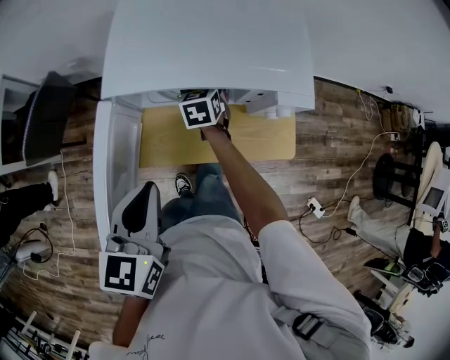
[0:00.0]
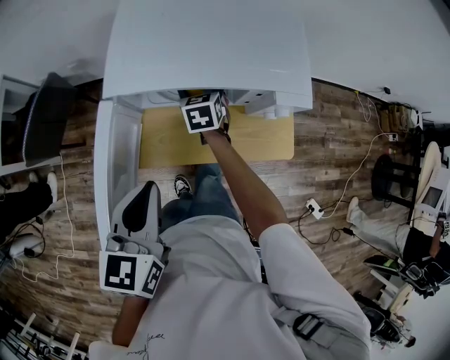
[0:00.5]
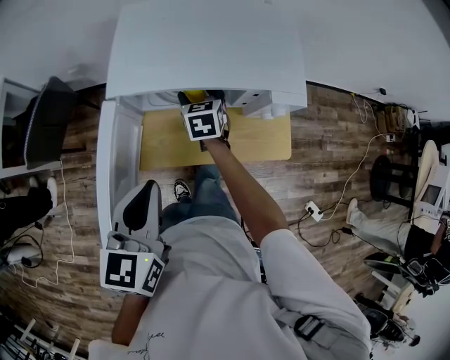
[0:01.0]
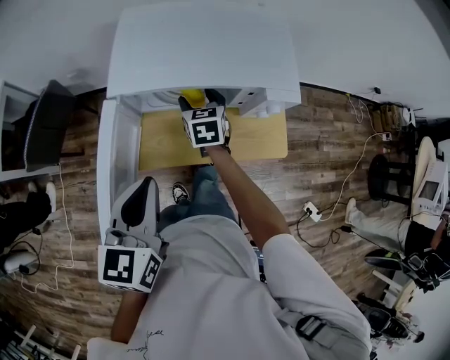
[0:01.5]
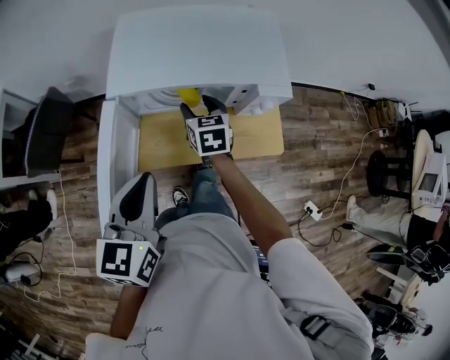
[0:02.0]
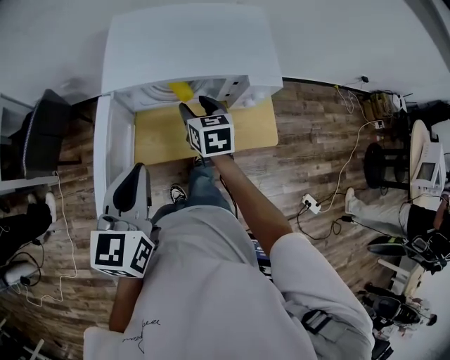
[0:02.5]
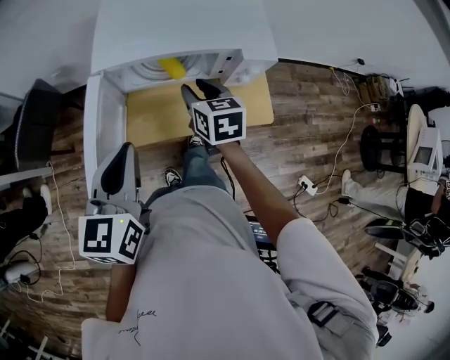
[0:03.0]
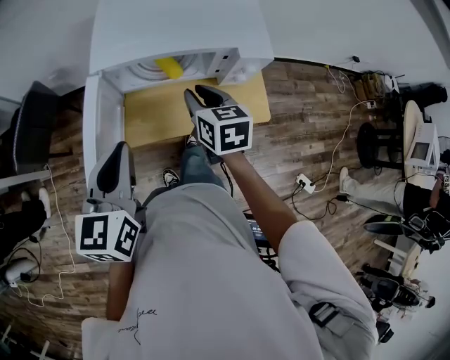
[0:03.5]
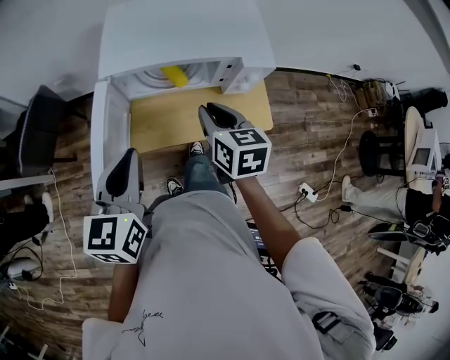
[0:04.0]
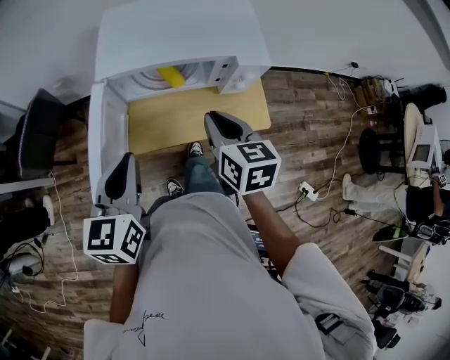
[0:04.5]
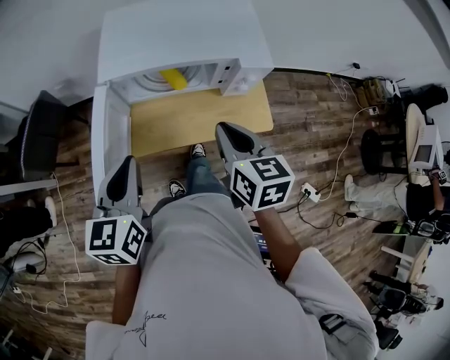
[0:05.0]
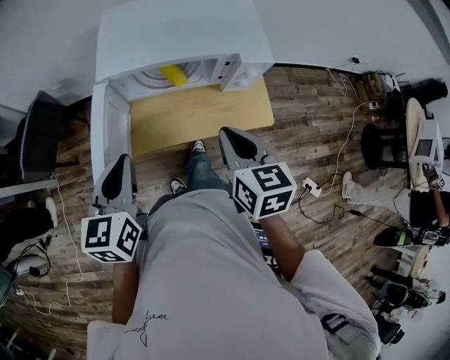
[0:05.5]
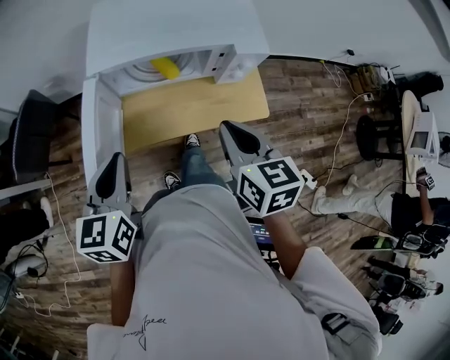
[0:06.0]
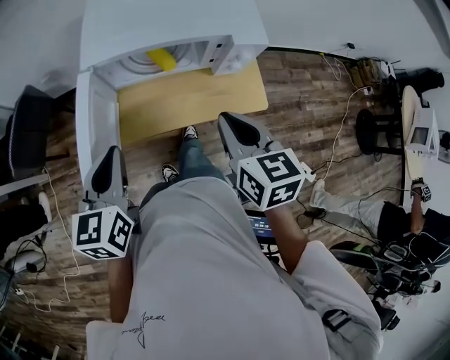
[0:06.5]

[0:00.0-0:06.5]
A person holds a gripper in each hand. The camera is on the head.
0:00.0 to 0:02.0: The right gripper goes roughly 10 cm backward and upward.
0:02.0 to 0:04.5: The right gripper travels backward and upward by some 20 cm, and closes its fingers.
0:04.5 to 0:06.5: The right gripper moves some 5 cm.

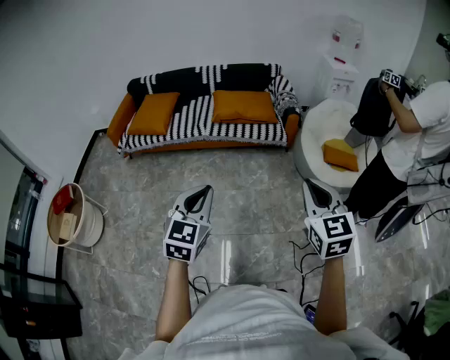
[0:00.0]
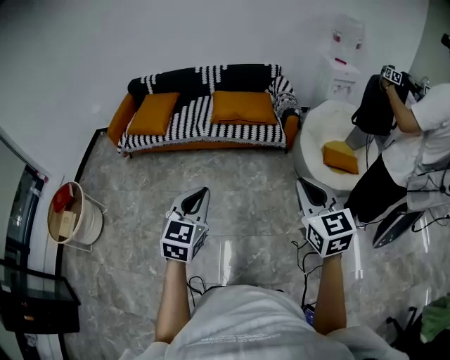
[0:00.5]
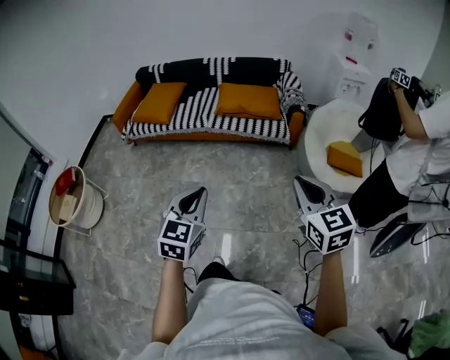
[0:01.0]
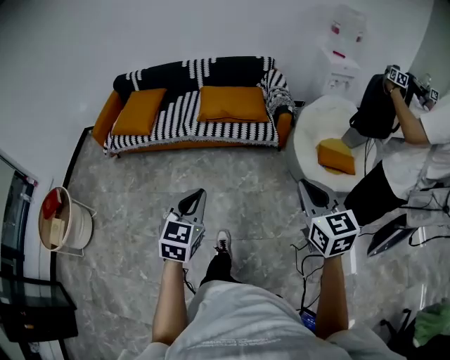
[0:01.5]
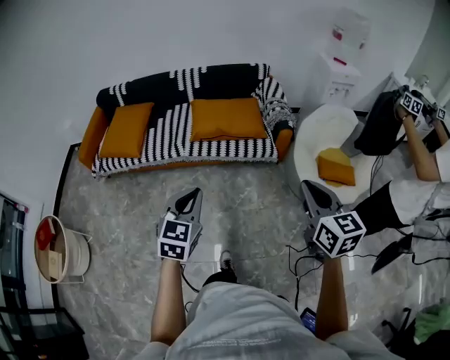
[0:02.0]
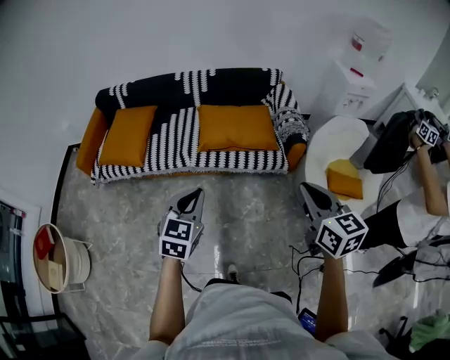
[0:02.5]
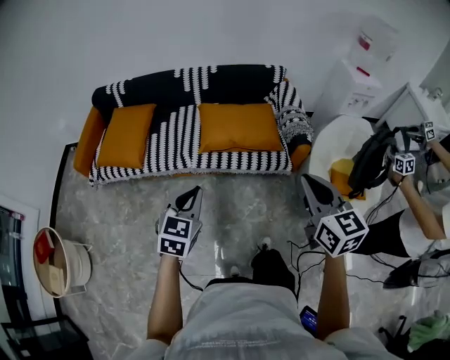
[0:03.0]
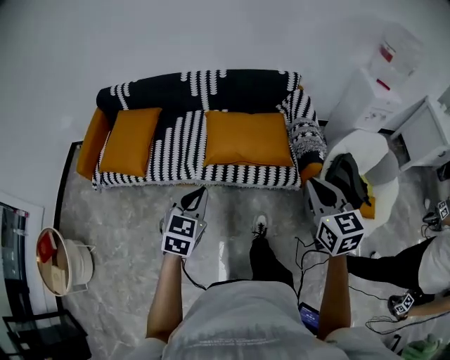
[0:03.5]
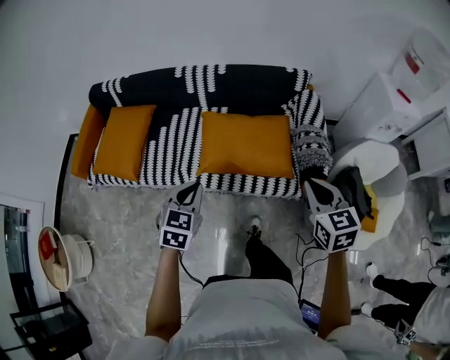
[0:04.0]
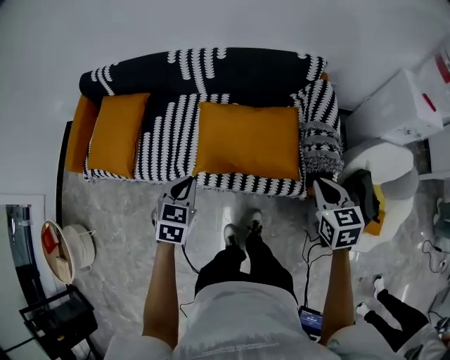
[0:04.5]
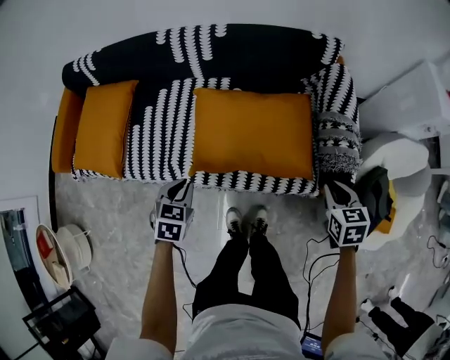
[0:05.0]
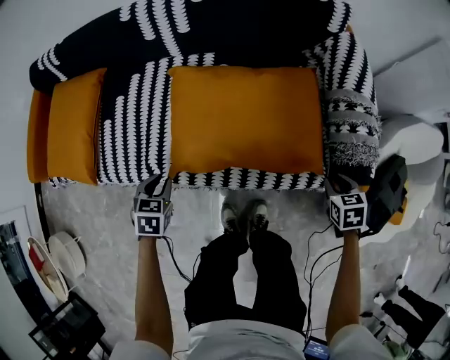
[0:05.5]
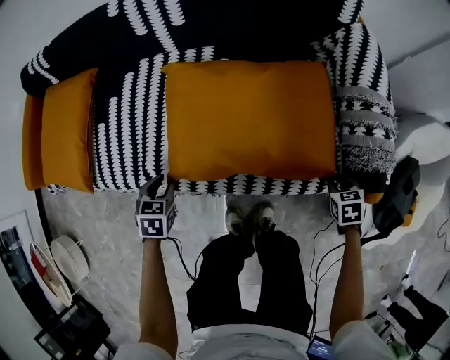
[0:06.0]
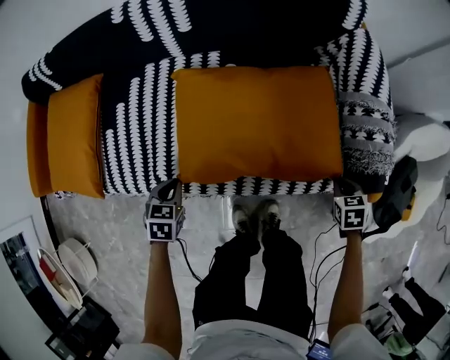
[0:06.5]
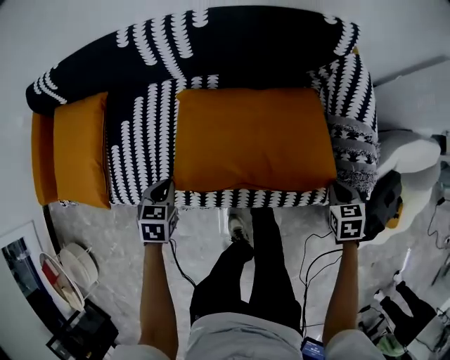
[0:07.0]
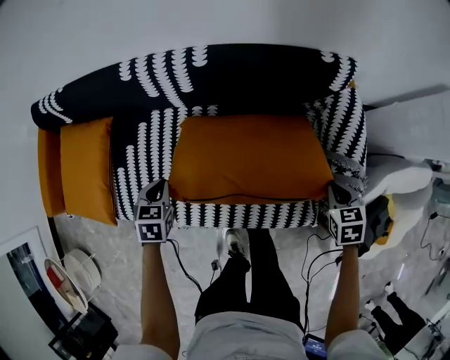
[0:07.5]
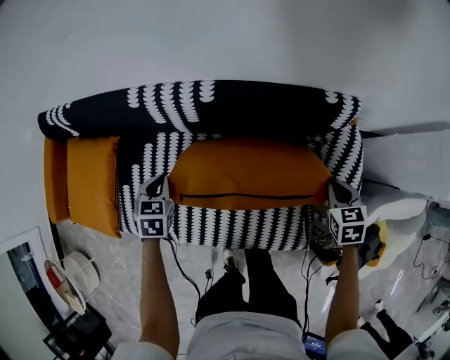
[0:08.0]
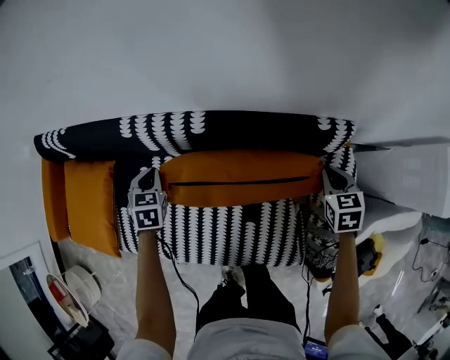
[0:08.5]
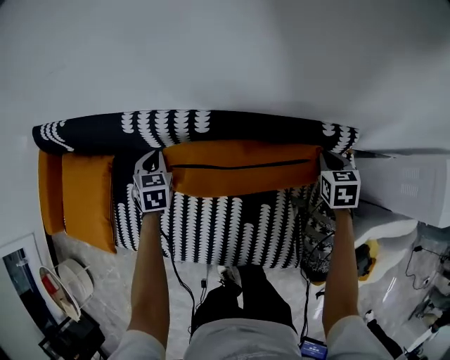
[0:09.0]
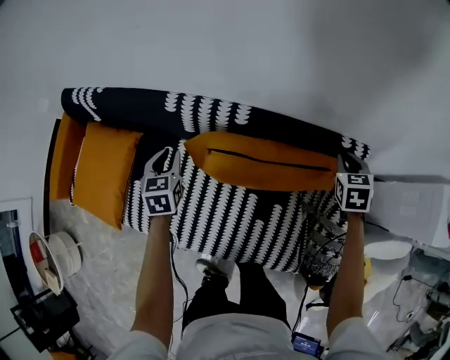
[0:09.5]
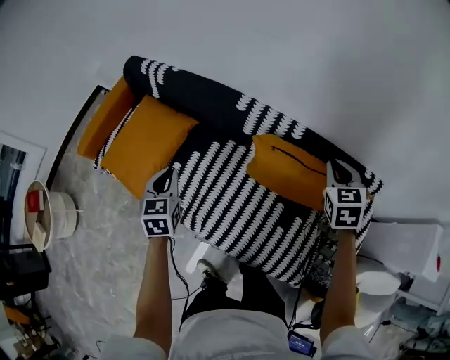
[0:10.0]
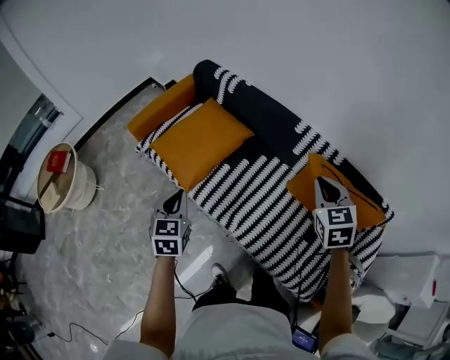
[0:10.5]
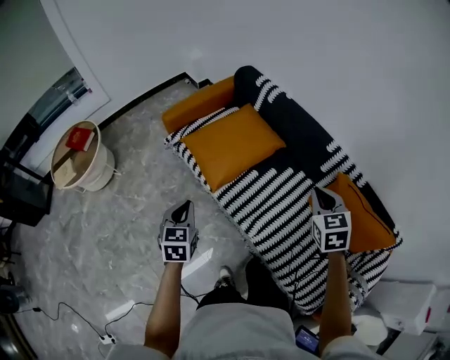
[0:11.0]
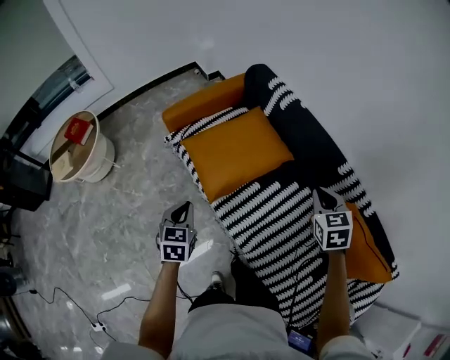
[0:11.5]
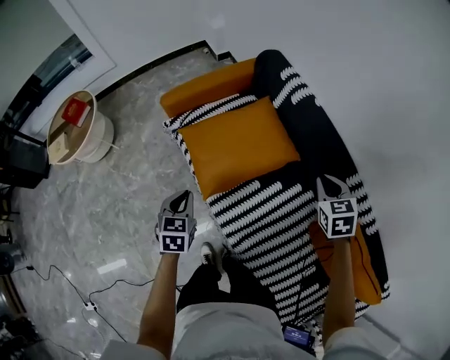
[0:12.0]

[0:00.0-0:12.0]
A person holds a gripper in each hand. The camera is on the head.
0:00.0 to 0:02.0: Both grippers travel together forward, approximately 30 cm.
0:02.0 to 0:04.0: Both grippers are carried forward, approximately 50 cm.
0:04.0 to 0:06.0: The grippers both shift downward by approximately 50 cm. The left gripper rotates roughly 30 degrees, and opens. The right gripper points its fingers about 40 degrees further downward, and opens its fingers.
0:06.0 to 0:08.0: The grippers both shift forward and upward by about 35 cm. The left gripper closes up.
0:08.0 to 0:10.0: The left gripper heads to the left, upward and backward, covering some 30 cm, and rotates approximately 40 degrees; the right gripper shifts approximately 40 cm to the left, upward and forward, and rotates approximately 30 degrees.
0:10.0 to 0:12.0: The left gripper shifts by roughly 35 cm, and changes its angle by approximately 30 degrees; the right gripper moves about 50 cm, and changes its angle by roughly 40 degrees.

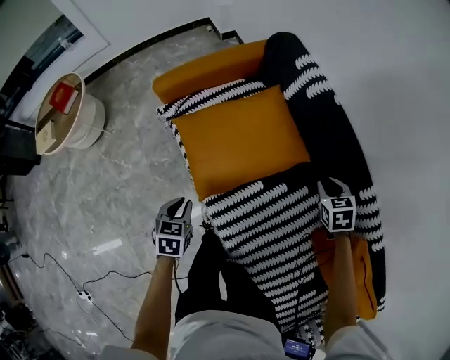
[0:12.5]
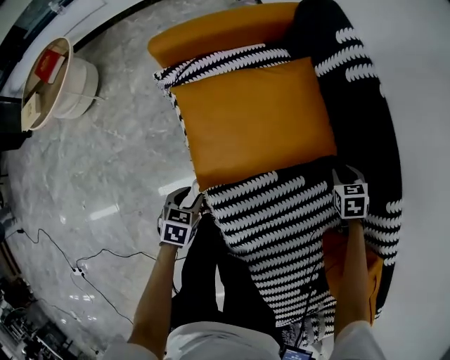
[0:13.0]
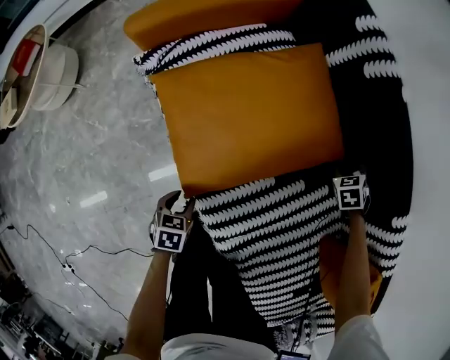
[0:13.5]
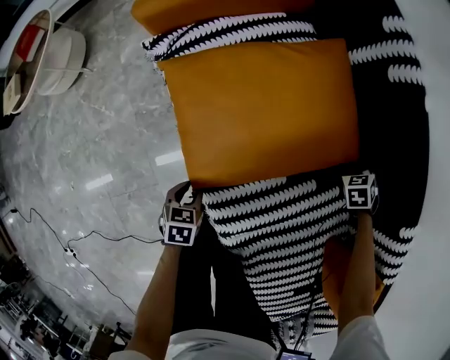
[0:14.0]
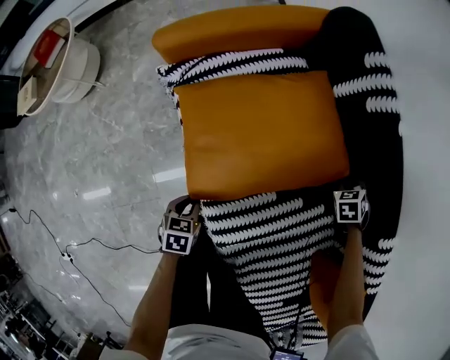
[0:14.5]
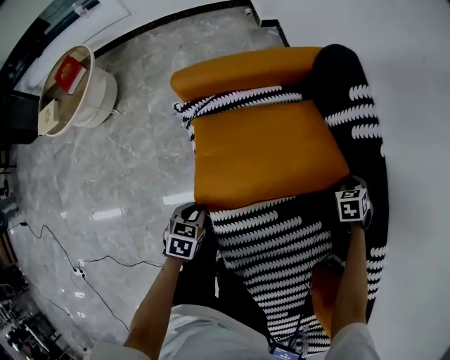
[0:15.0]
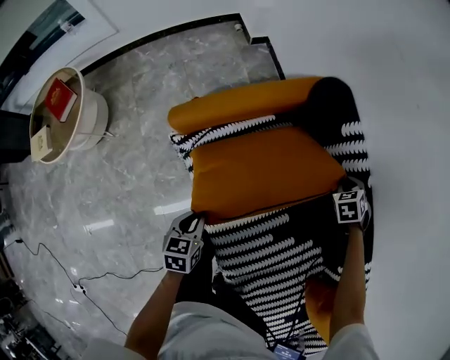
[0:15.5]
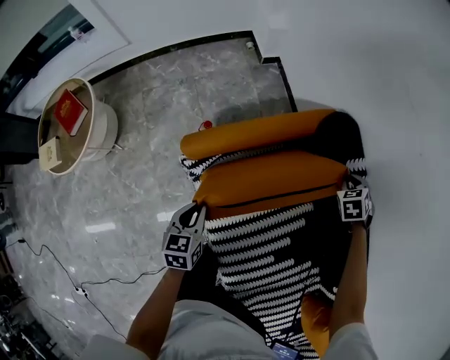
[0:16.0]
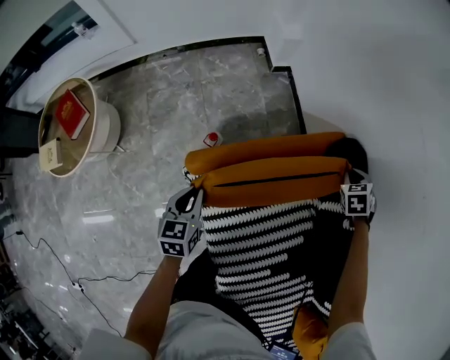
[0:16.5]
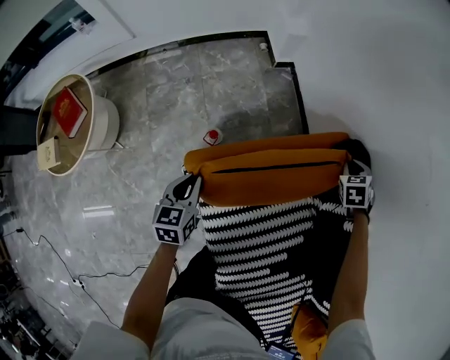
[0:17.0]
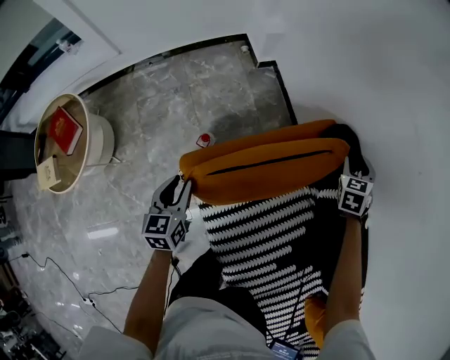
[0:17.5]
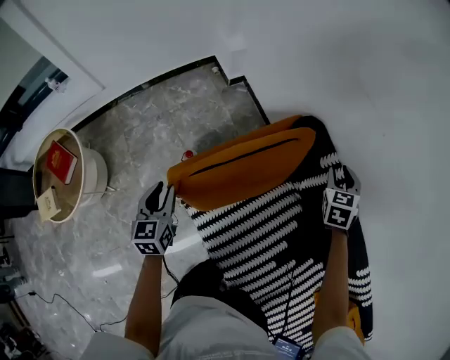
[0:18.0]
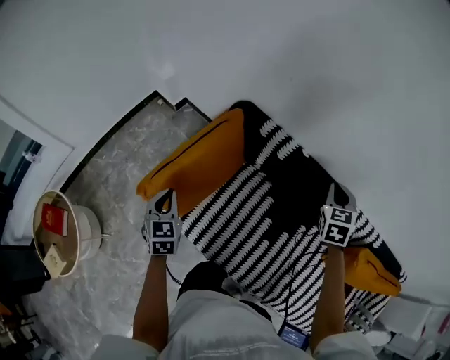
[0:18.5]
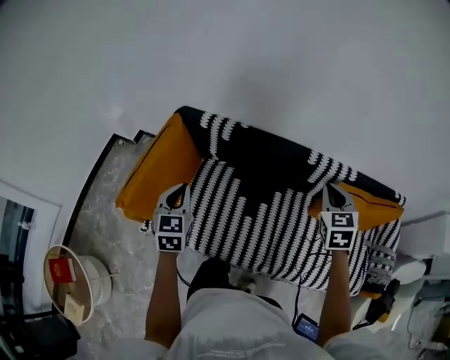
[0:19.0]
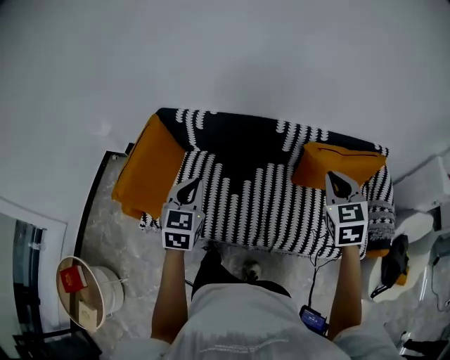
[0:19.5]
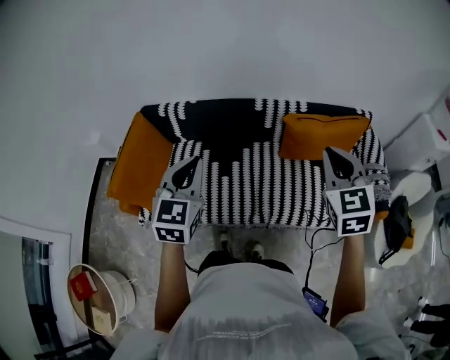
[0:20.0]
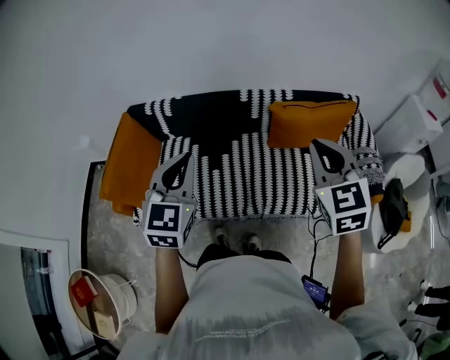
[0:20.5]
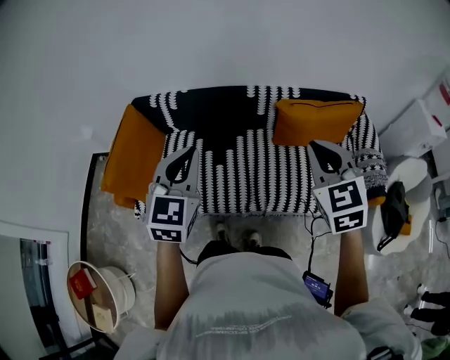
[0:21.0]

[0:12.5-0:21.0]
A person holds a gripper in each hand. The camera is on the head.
0:12.5 to 0:14.5: The left gripper heads downward, covering roughly 20 cm, and opens and closes again, while the right gripper goes roughly 25 cm downward and forward, rotates about 20 degrees, and opens, then closes once more.
0:14.5 to 0:16.5: Both grippers are carried forward and to the left, some 40 cm. The grippers both shift upward by about 20 cm. The left gripper swivels roughly 30 degrees.
0:16.5 to 0:19.0: The left gripper ends up roughly 40 cm from where it was, swivels some 60 degrees, and opens, then closes once more; the right gripper changes place by about 70 cm, rolls clockwise, seen from behind, by about 50 degrees, and opens and closes again.
0:19.0 to 0:21.0: The right gripper shifts about 35 cm backward, to the right and upward. Meanwhile the left gripper travels to the right, upward and backward by about 35 cm, and changes its angle by some 30 degrees.
